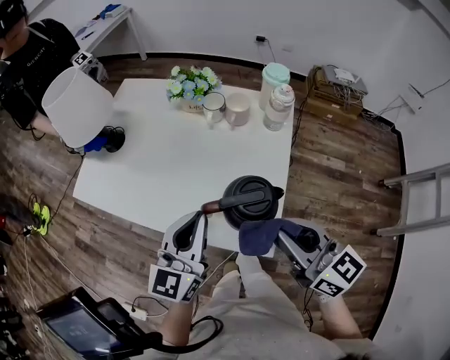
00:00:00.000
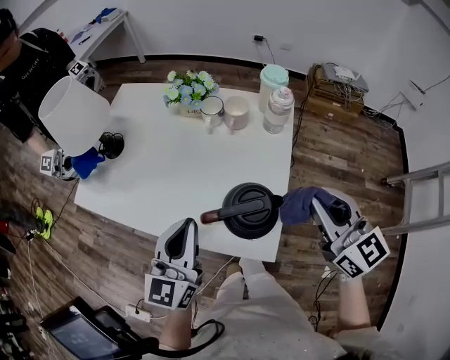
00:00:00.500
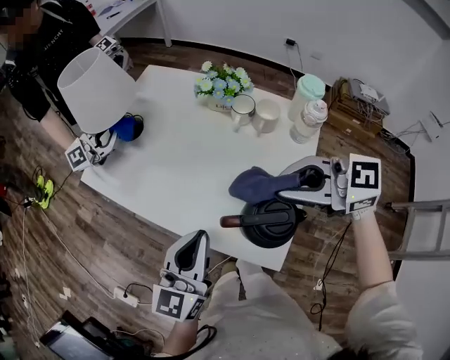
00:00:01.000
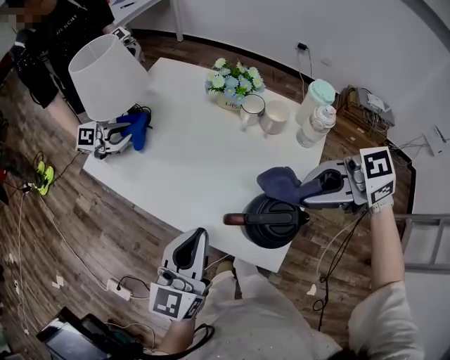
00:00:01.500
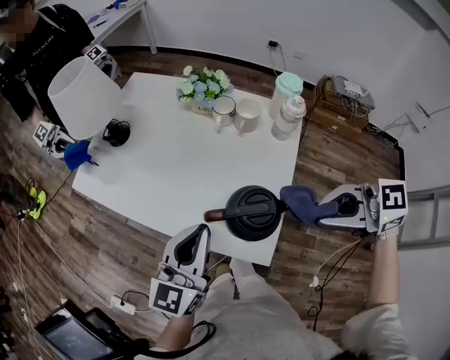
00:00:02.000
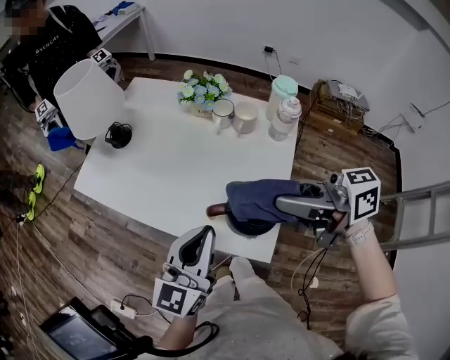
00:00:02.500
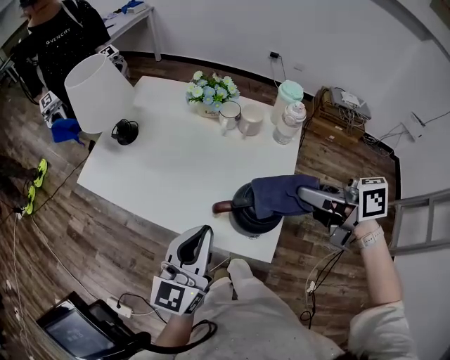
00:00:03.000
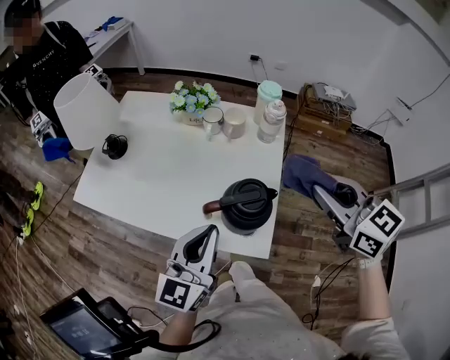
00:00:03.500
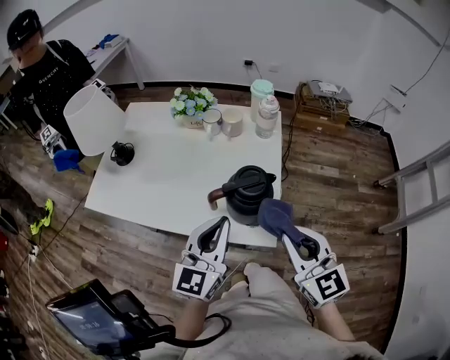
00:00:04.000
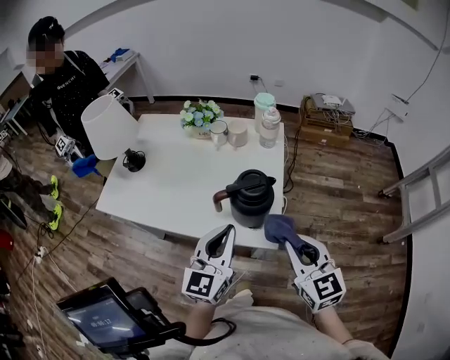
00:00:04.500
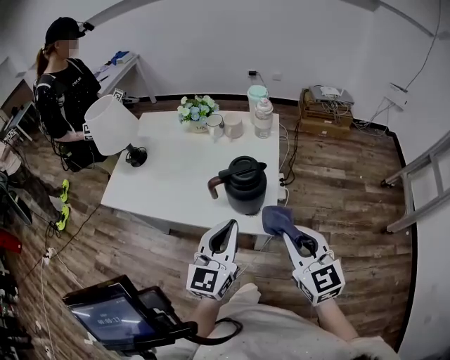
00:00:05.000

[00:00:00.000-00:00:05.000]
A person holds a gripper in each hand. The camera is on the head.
00:00:00.000 to 00:00:02.500: The right gripper is displaced upward by roughly 10 cm, and swivels roughly 50 degrees.
00:00:02.500 to 00:00:05.000: The left gripper shifts by approximately 10 cm. Meanwhile the right gripper swings up and down, some 10 cm each way, with 2 reversals, and changes its angle by some 70 degrees.

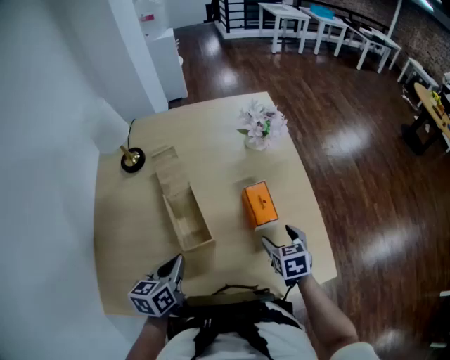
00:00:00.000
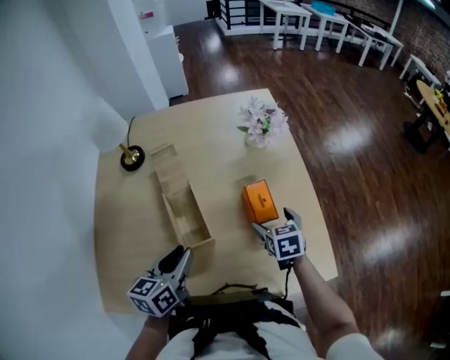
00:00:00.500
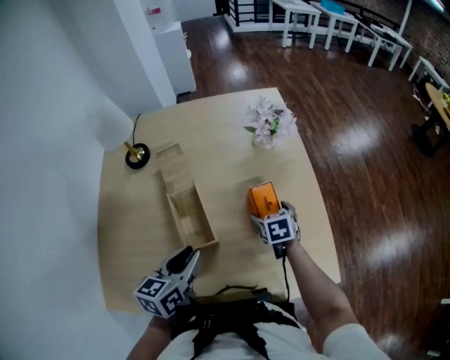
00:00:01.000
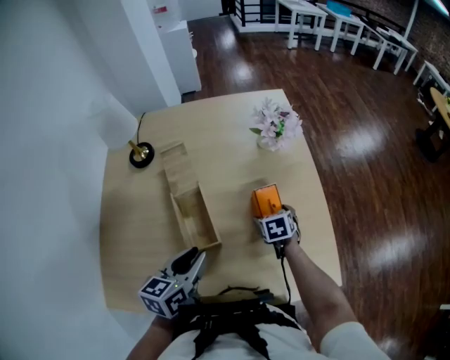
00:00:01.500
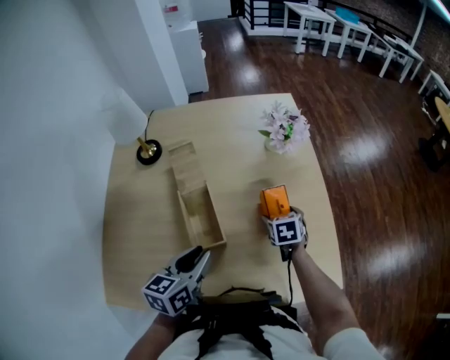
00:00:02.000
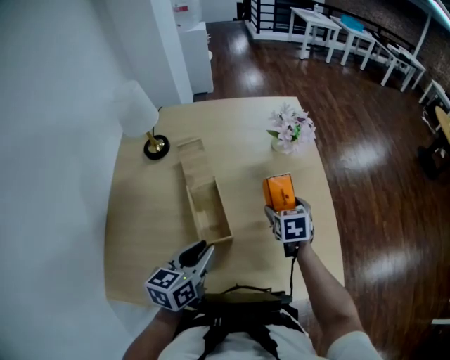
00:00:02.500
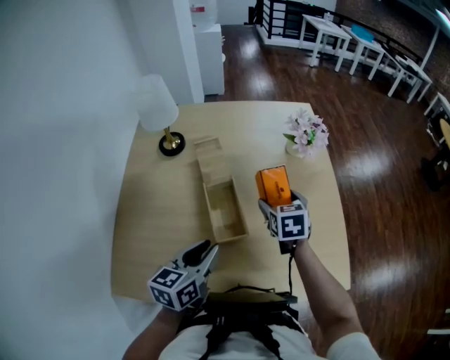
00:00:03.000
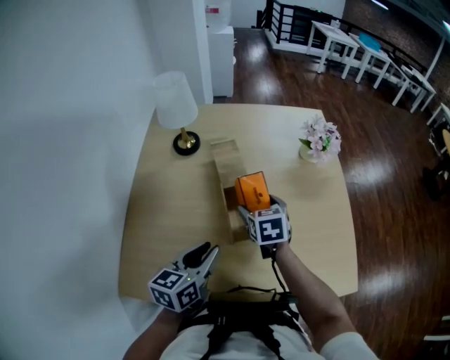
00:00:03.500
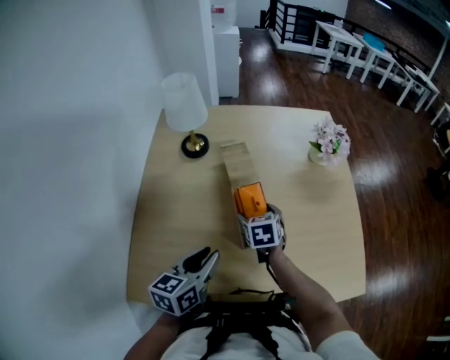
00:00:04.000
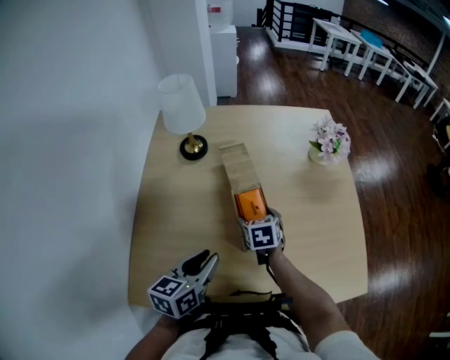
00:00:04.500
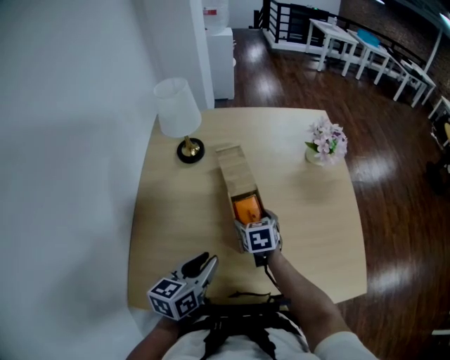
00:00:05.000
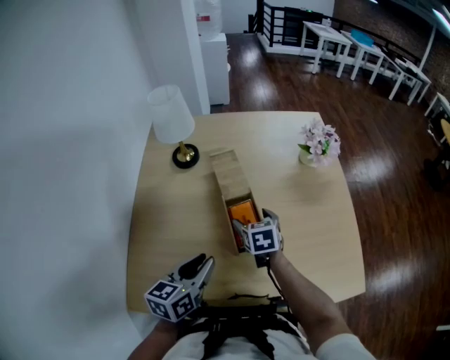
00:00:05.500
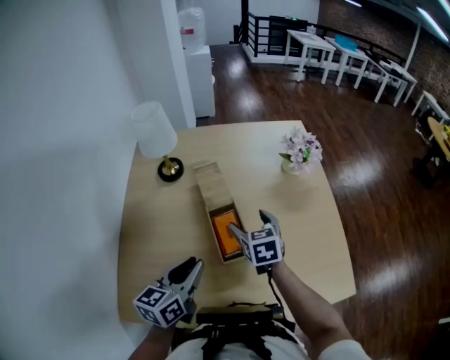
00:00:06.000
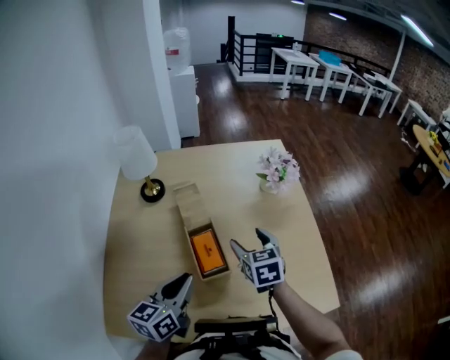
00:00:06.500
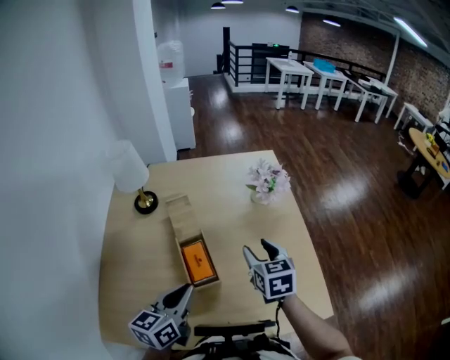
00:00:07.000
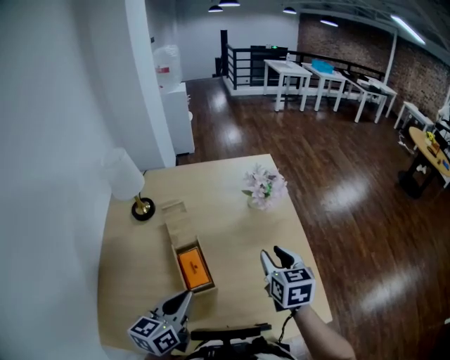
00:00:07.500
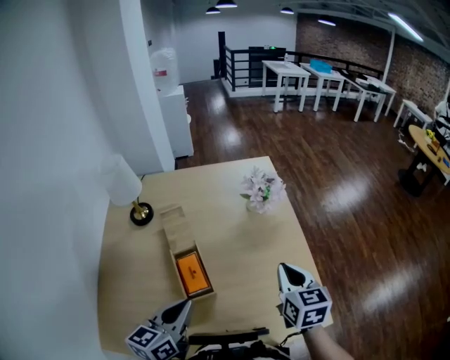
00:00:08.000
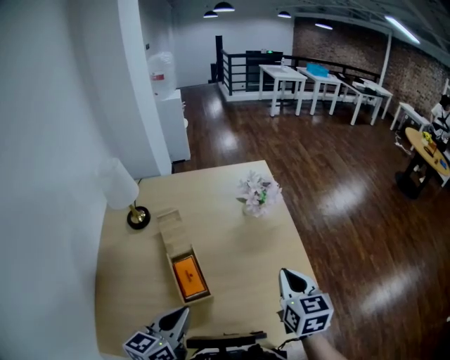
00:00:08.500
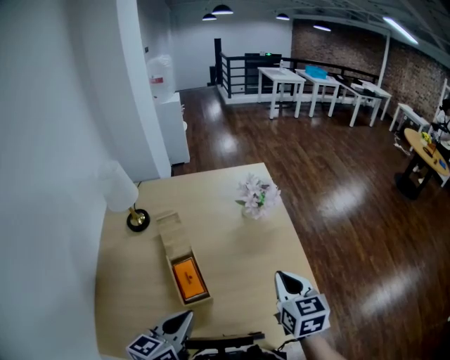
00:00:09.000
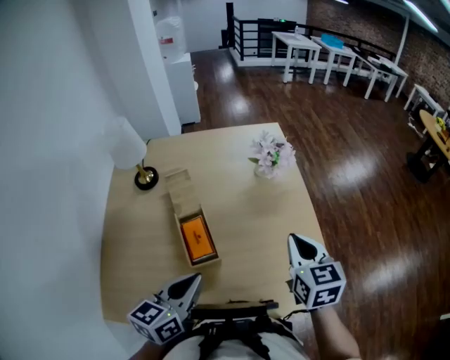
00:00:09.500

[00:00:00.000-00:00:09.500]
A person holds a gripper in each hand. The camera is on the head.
00:00:00.000 to 00:00:02.000: The right gripper is displaced forward and downward by about 10 cm. Meanwhile the left gripper ends up some 5 cm from where it was, and opens.
00:00:02.000 to 00:00:04.000: The right gripper goes some 25 cm to the left, while the left gripper shifts some 15 cm to the left.
00:00:04.000 to 00:00:05.500: There are only small adjustments of the grippers.
00:00:05.500 to 00:00:07.500: The left gripper heads to the right and upward, covering roughly 15 cm, and closes. The right gripper heads to the right and upward, covering roughly 30 cm, rotates roughly 20 degrees, and closes.
00:00:07.500 to 00:00:09.500: The right gripper shifts by some 5 cm.

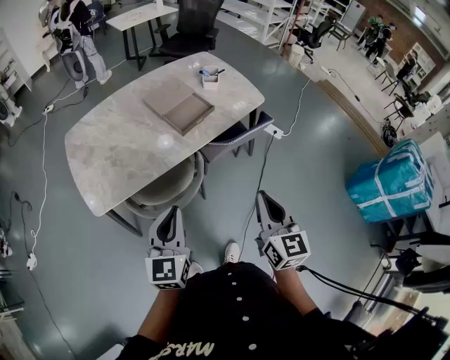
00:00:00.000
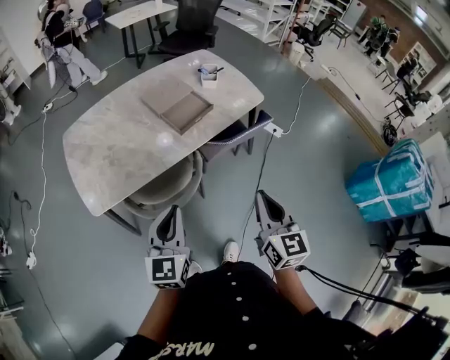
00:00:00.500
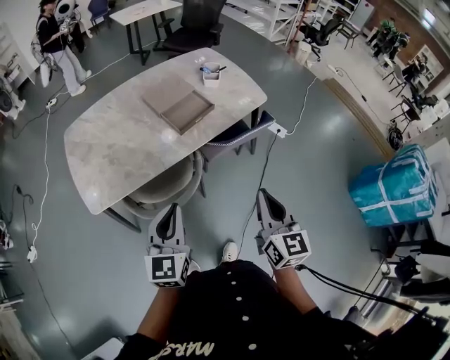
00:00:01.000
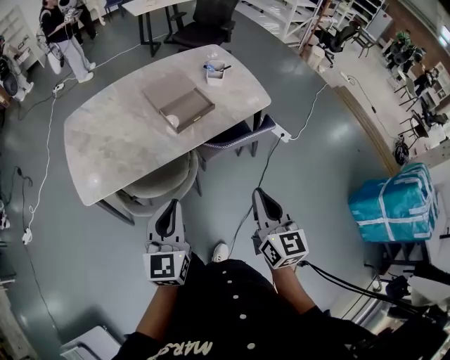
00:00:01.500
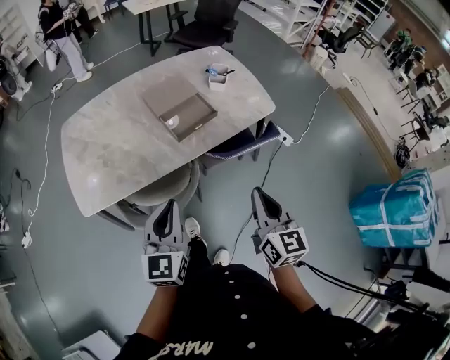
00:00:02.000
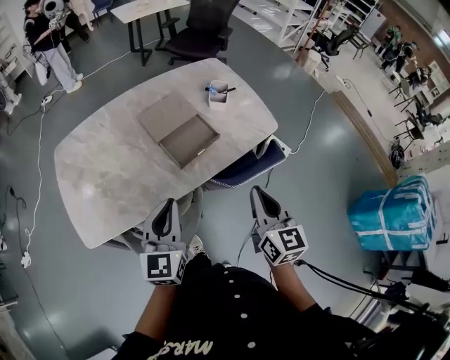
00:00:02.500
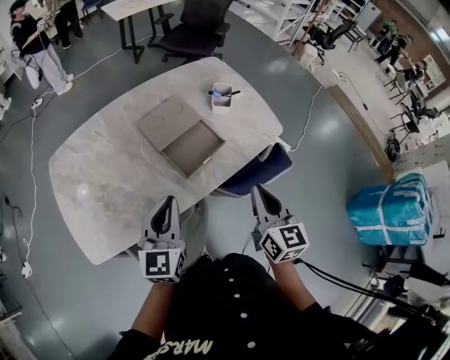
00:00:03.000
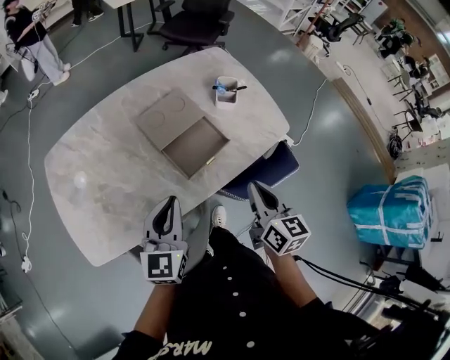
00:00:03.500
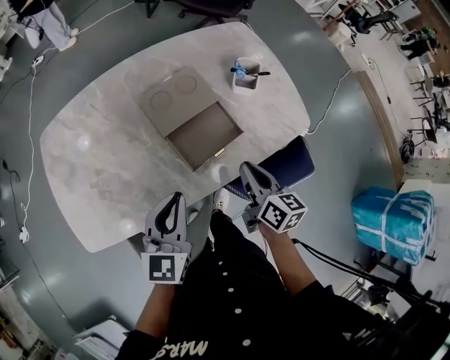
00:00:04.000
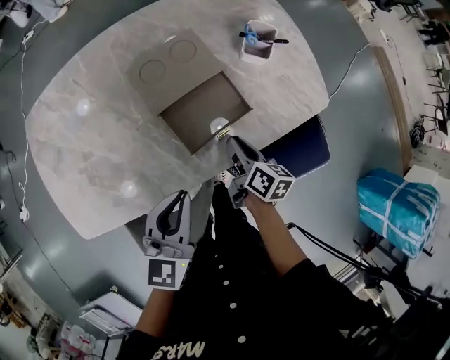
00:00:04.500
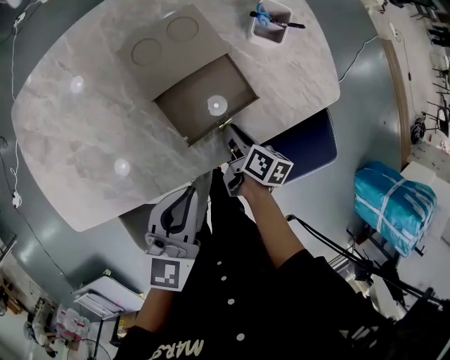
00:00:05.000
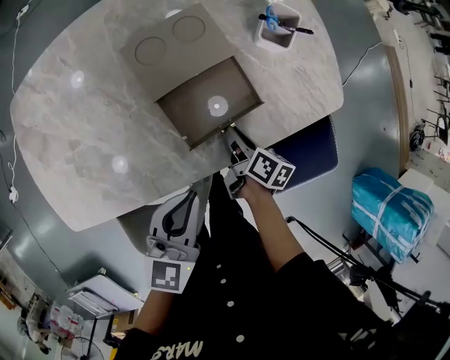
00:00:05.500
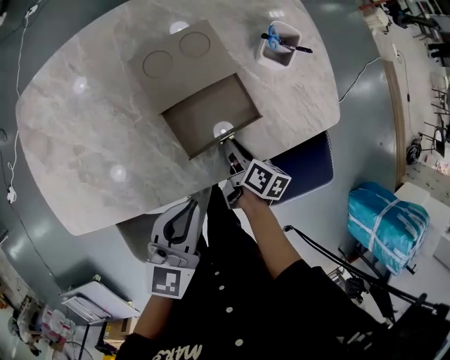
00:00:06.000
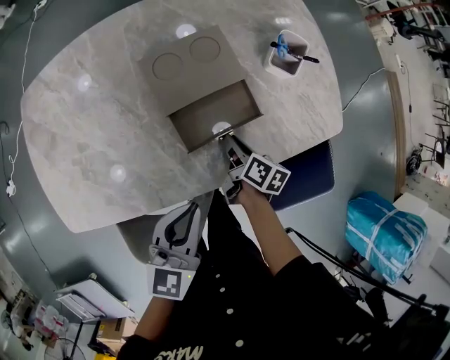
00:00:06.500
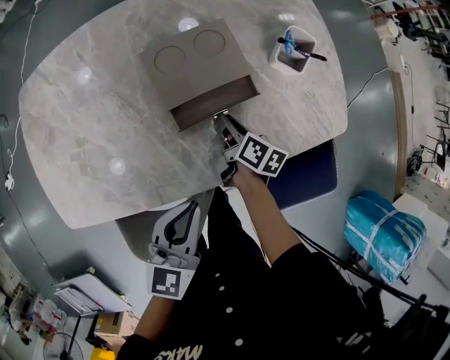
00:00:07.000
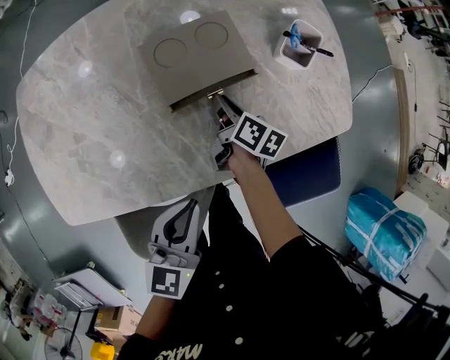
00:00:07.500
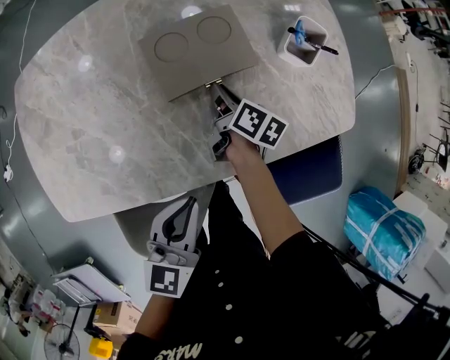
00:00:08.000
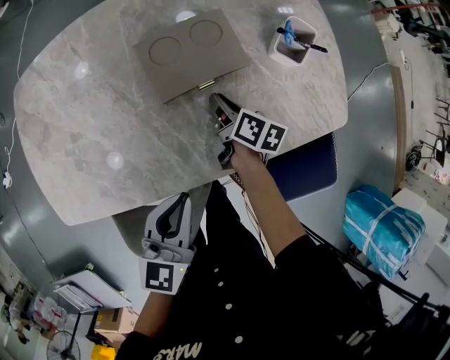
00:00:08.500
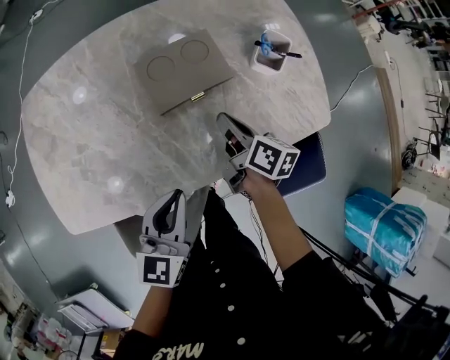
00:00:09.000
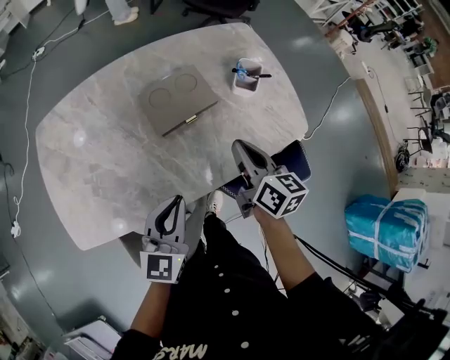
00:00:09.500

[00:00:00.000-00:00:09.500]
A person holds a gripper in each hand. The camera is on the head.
00:00:00.000 to 00:00:02.000: The grippers both shift forward and to the right by some 10 cm.
00:00:02.000 to 00:00:04.000: The left gripper heads forward, covering approximately 25 cm, while the right gripper moves forward and downward, some 35 cm, and rotates approximately 30 degrees.
00:00:04.000 to 00:00:05.500: The right gripper moves downward, approximately 20 cm, and swivels approximately 30 degrees. The left gripper moves downward, about 10 cm.
00:00:05.500 to 00:00:07.500: The right gripper heads forward and to the left, covering some 15 cm.
00:00:07.500 to 00:00:09.500: The right gripper travels upward and backward by some 25 cm, and turns by some 30 degrees, while the left gripper travels upward by about 5 cm.

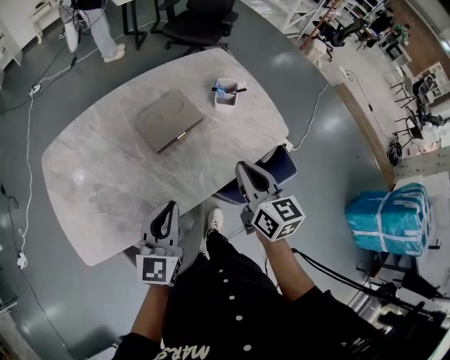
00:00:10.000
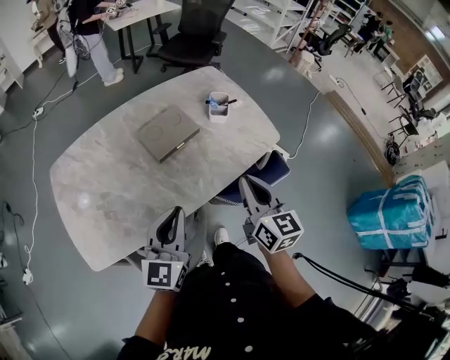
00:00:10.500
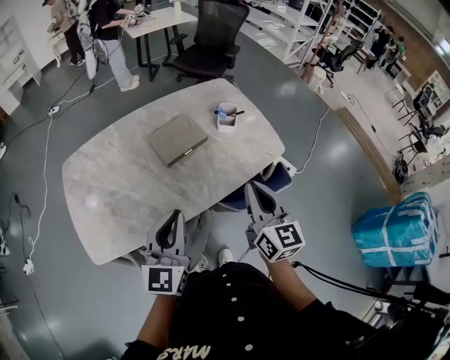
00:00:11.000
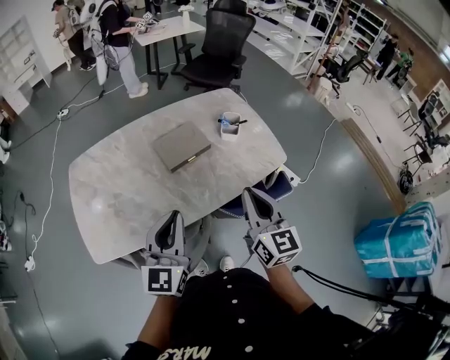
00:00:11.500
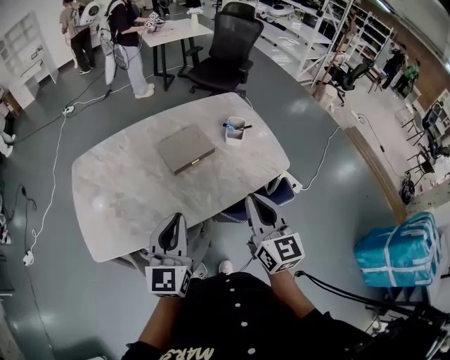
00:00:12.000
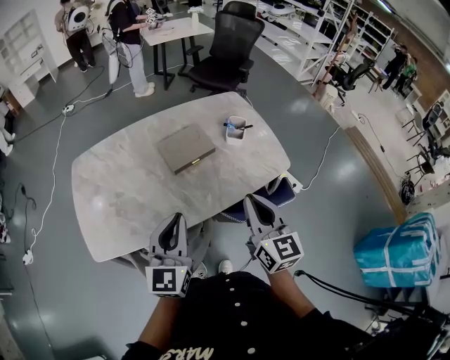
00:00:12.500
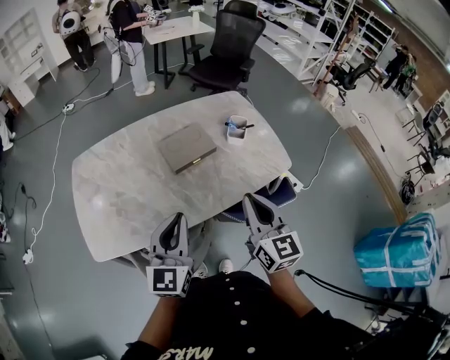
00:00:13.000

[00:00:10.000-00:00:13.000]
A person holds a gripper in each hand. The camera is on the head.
00:00:10.000 to 00:00:11.500: The right gripper heads backward and upward, covering approximately 15 cm, while the left gripper is displaced upward and backward by roughly 10 cm.
00:00:11.500 to 00:00:13.000: Both grippers stay about where they are.
